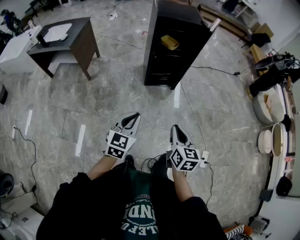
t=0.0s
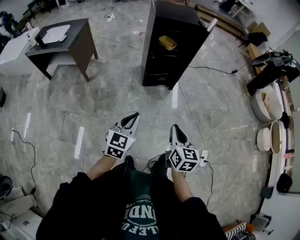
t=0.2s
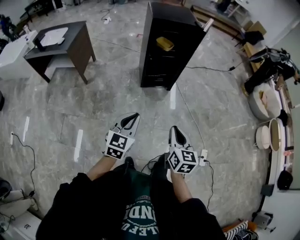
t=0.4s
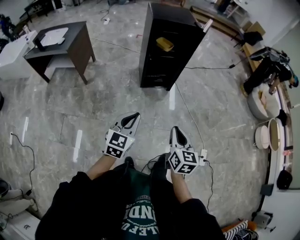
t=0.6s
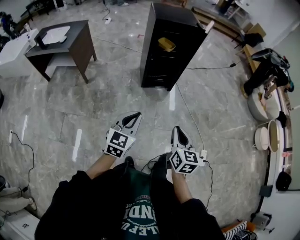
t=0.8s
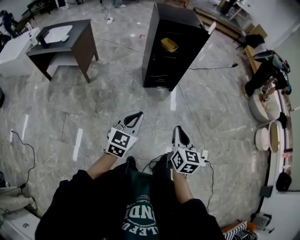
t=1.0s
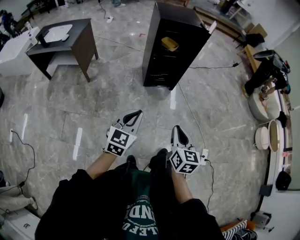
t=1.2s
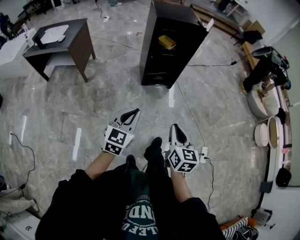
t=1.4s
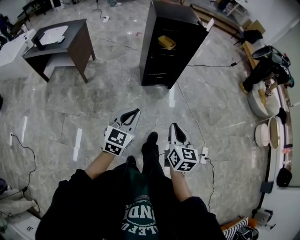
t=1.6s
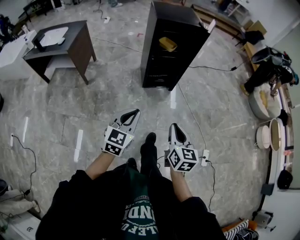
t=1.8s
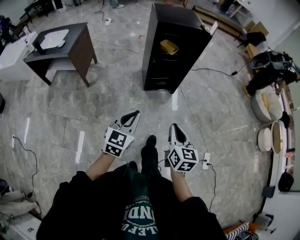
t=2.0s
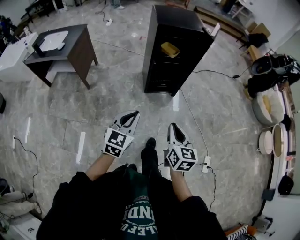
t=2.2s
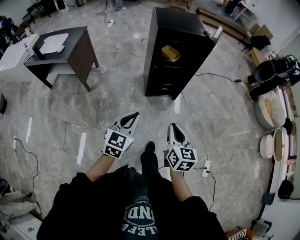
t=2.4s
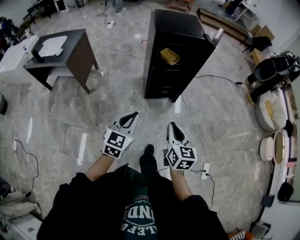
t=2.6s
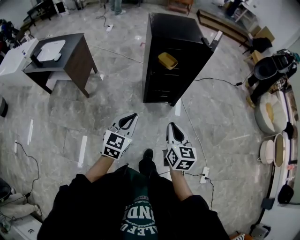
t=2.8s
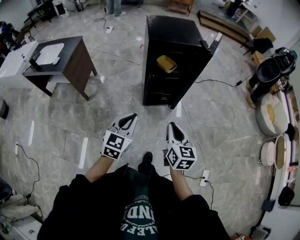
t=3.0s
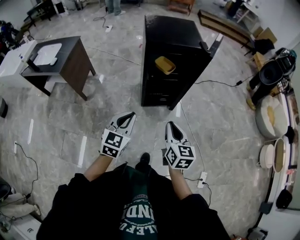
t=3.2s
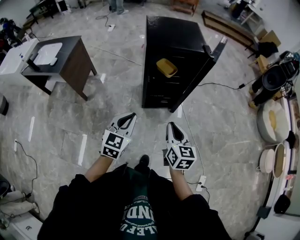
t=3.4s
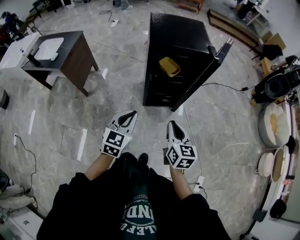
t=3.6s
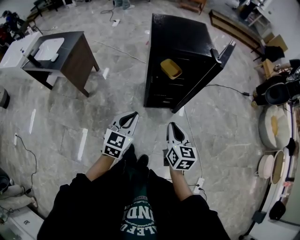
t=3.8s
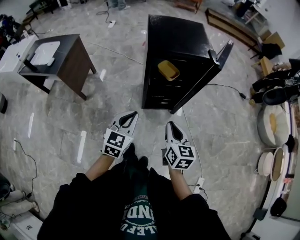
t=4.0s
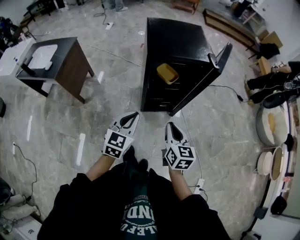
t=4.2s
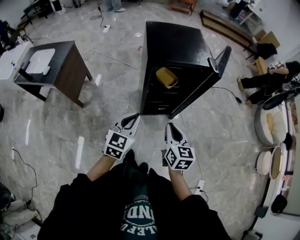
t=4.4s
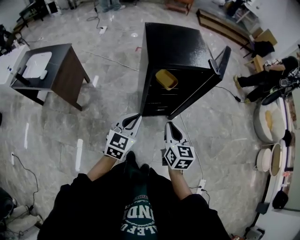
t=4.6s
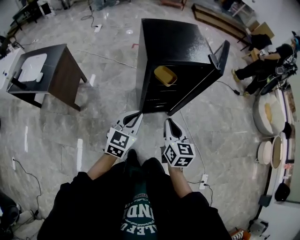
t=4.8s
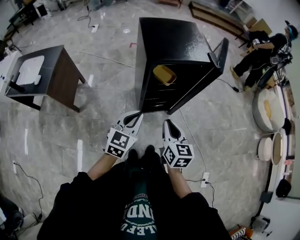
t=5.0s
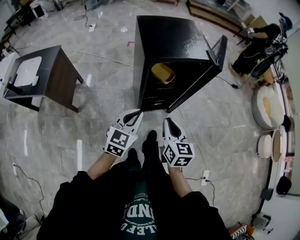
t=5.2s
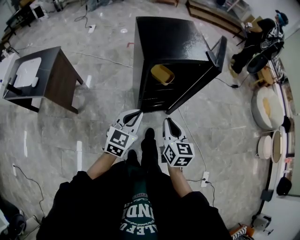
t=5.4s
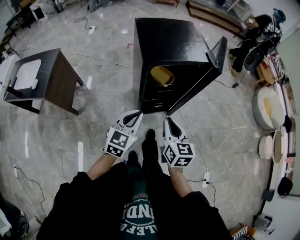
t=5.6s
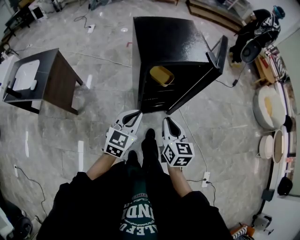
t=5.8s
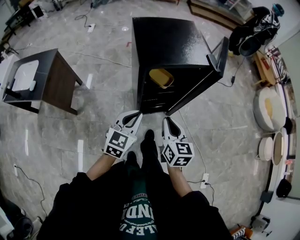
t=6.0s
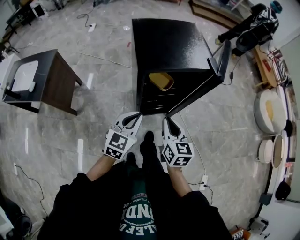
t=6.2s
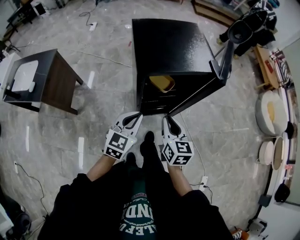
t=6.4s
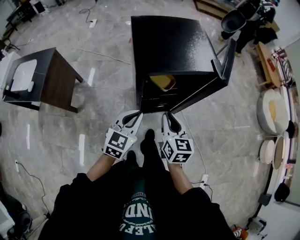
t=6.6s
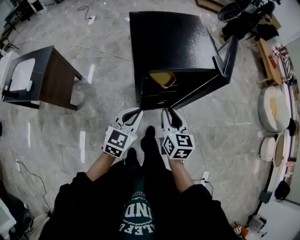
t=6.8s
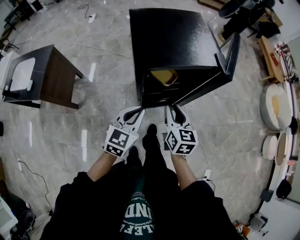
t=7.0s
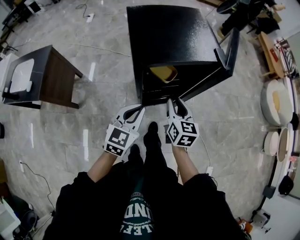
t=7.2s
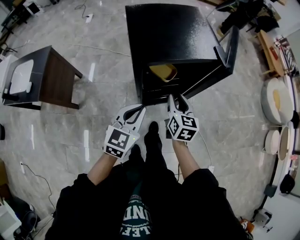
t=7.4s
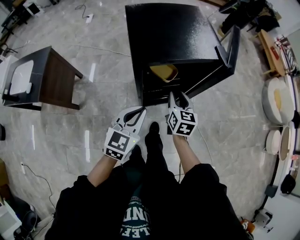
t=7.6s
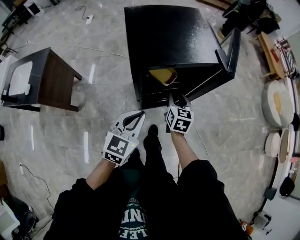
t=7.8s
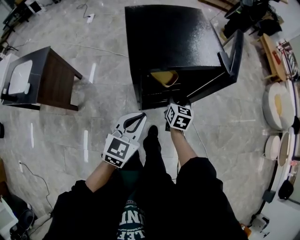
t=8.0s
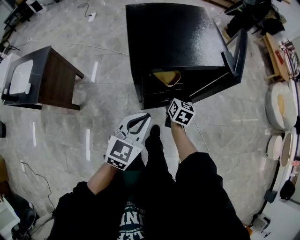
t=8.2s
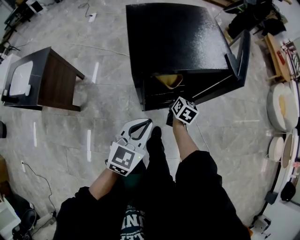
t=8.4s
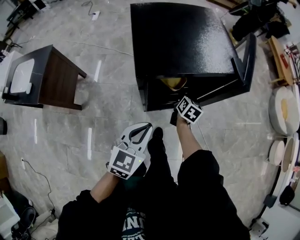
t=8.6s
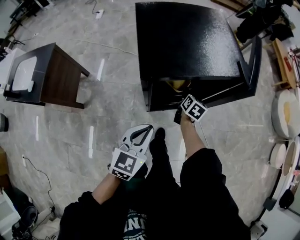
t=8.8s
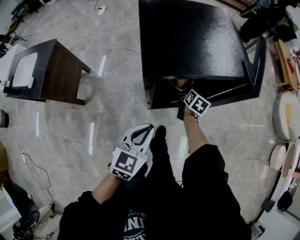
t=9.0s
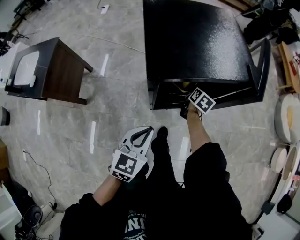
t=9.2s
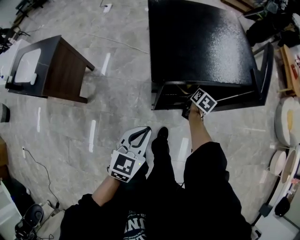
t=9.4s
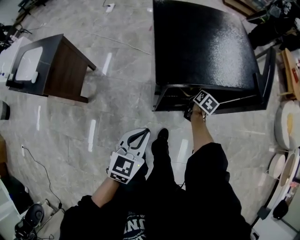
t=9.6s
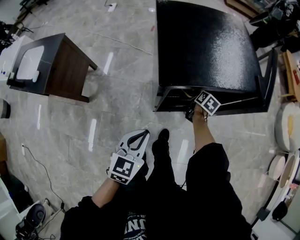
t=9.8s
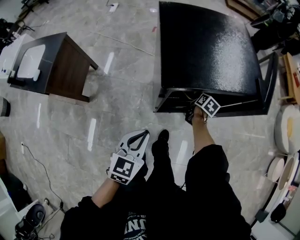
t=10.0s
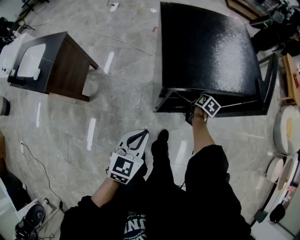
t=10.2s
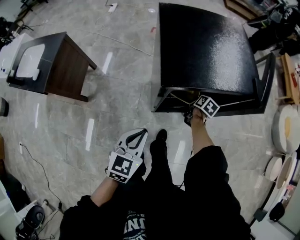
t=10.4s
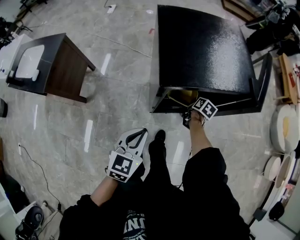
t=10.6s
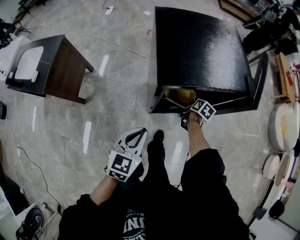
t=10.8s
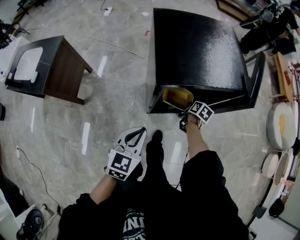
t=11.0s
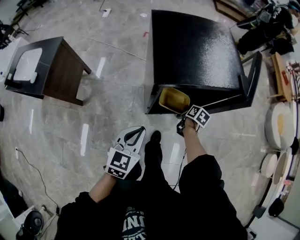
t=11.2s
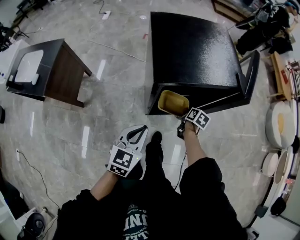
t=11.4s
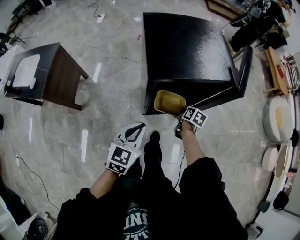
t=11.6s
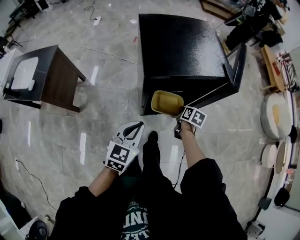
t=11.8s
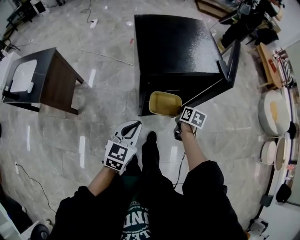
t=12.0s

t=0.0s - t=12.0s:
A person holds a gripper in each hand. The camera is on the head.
t=0.0s - t=1.6s: The right gripper changes place by some 5 cm.
t=1.6s - t=3.0s: The grippers both shift forward by some 25 cm.
t=3.0s - t=4.4s: The two grippers go about 20 cm forward.
t=4.4s - t=6.0s: Both grippers move forward, about 10 cm.
t=6.0s - t=7.6s: The right gripper shifts roughly 15 cm forward and downward.
t=7.6s - t=9.0s: The left gripper shifts roughly 5 cm downward. Meanwhile the right gripper travels forward and downward by some 20 cm, and rotates roughly 20 degrees.
t=9.0s - t=10.4s: The right gripper goes about 5 cm downward, and closes its fingers. The left gripper shifts some 5 cm to the left.
t=10.4s - t=12.0s: The left gripper changes place by some 5 cm; the right gripper is displaced backward and upward by roughly 15 cm.

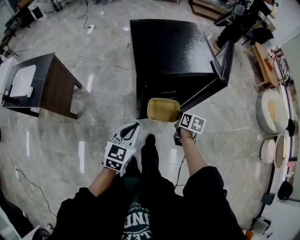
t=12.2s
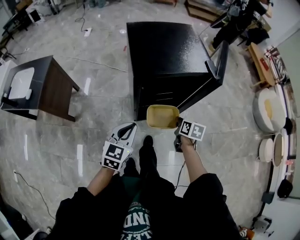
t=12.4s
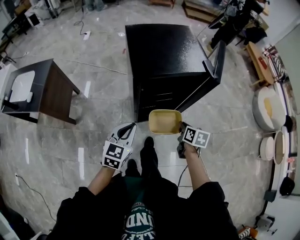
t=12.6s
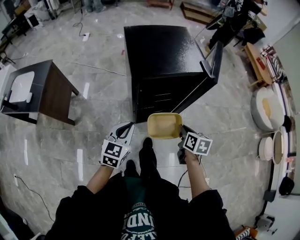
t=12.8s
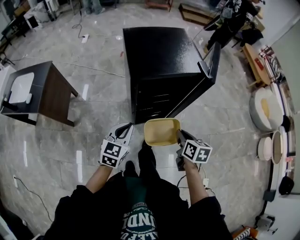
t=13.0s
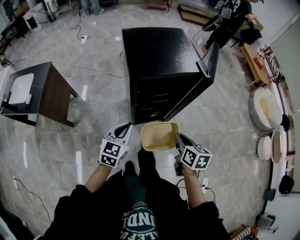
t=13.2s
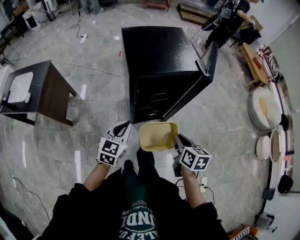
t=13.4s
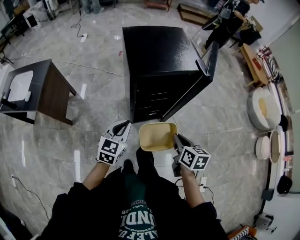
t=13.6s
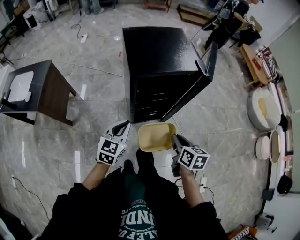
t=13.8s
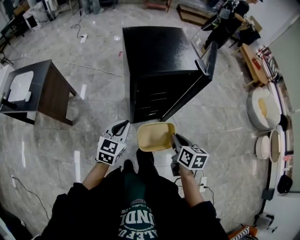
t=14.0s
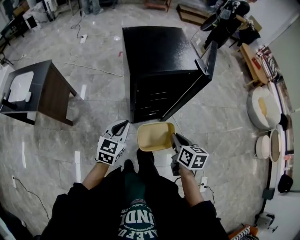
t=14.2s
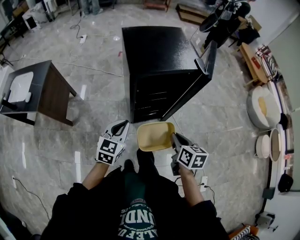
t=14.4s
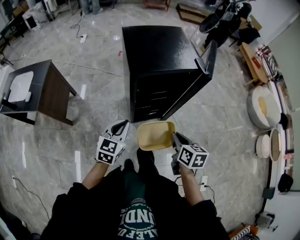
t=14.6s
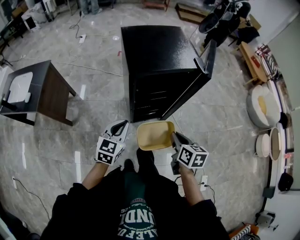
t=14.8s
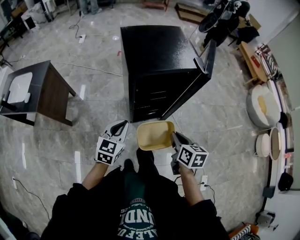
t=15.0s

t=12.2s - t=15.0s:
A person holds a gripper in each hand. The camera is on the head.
t=12.2s - t=13.6s: The right gripper heads backward and upward, covering approximately 20 cm.
t=13.6s - t=15.0s: Both grippers stay put.

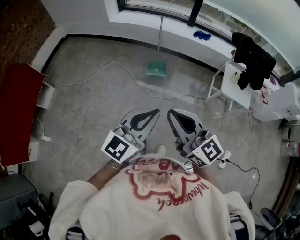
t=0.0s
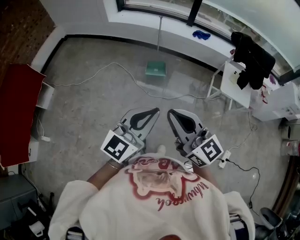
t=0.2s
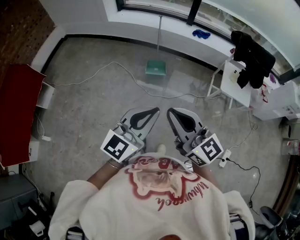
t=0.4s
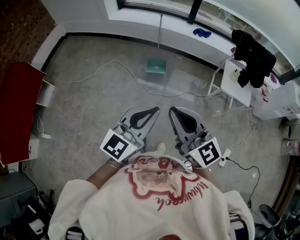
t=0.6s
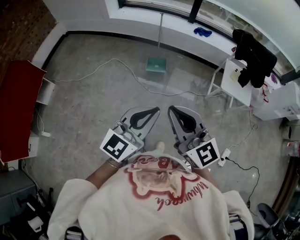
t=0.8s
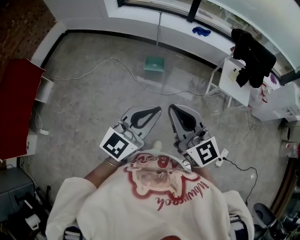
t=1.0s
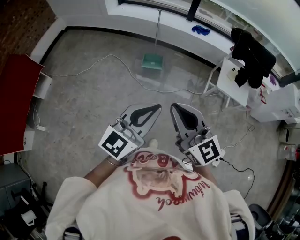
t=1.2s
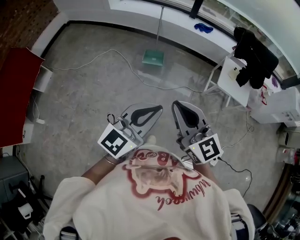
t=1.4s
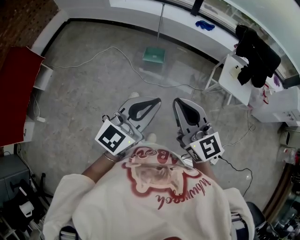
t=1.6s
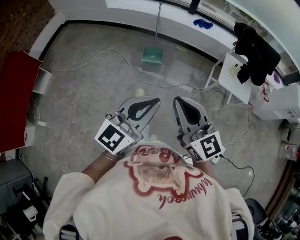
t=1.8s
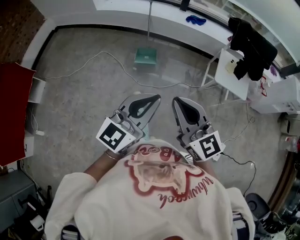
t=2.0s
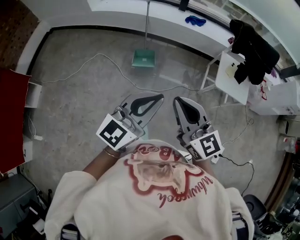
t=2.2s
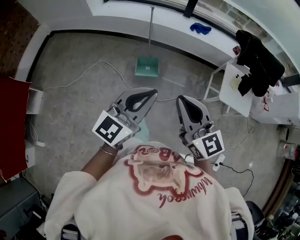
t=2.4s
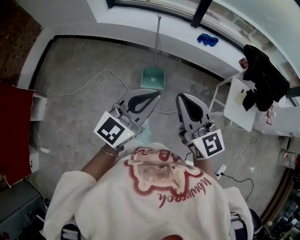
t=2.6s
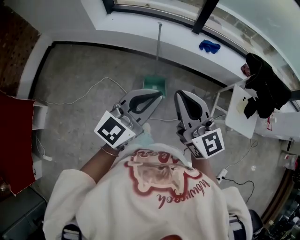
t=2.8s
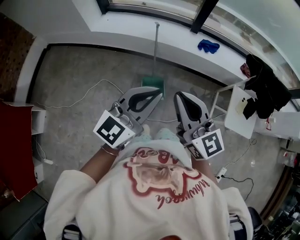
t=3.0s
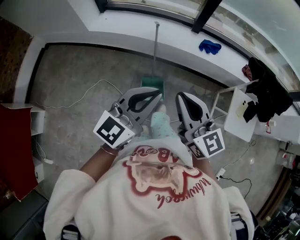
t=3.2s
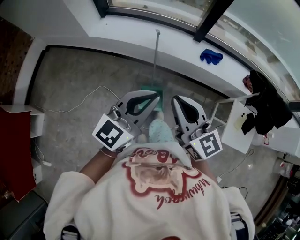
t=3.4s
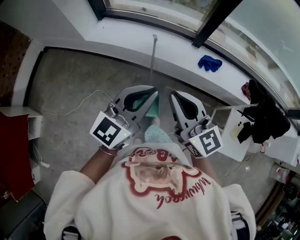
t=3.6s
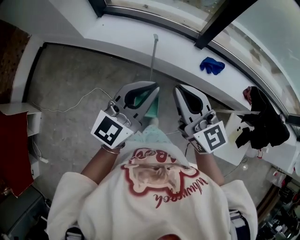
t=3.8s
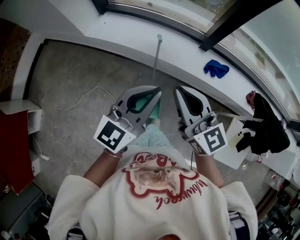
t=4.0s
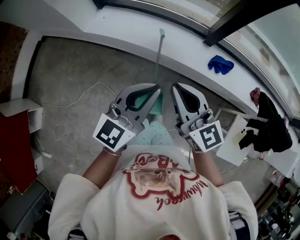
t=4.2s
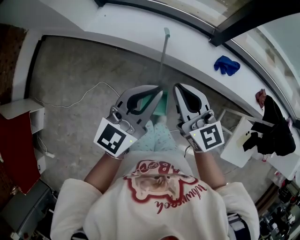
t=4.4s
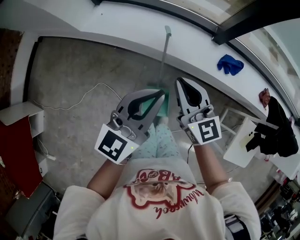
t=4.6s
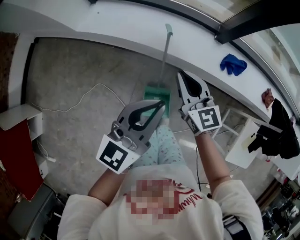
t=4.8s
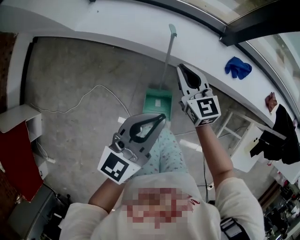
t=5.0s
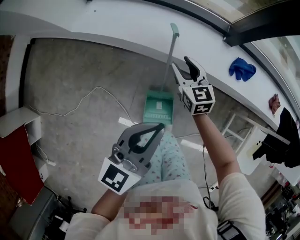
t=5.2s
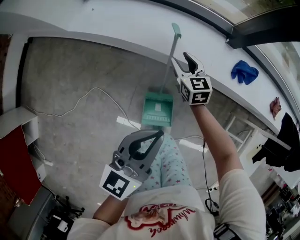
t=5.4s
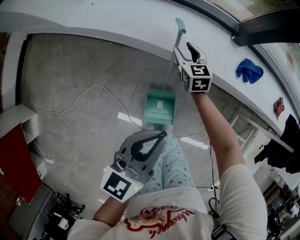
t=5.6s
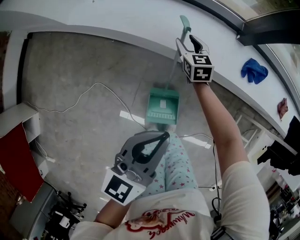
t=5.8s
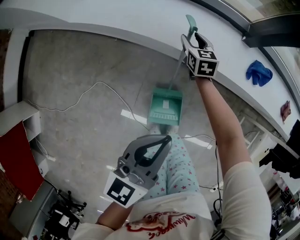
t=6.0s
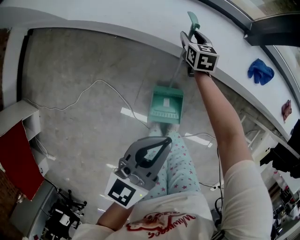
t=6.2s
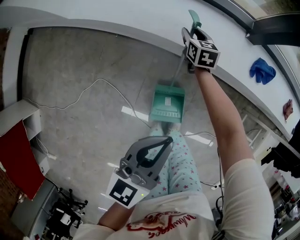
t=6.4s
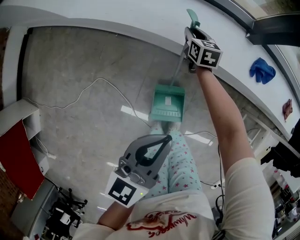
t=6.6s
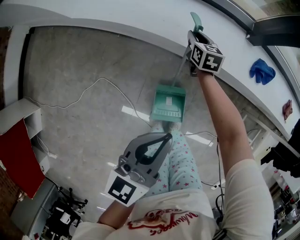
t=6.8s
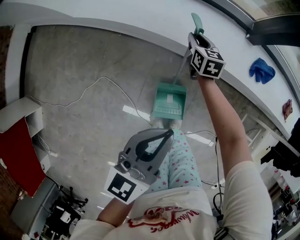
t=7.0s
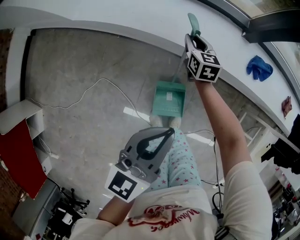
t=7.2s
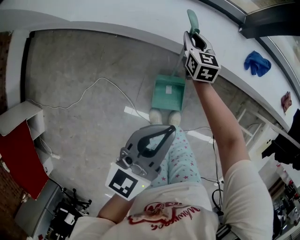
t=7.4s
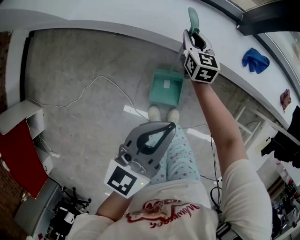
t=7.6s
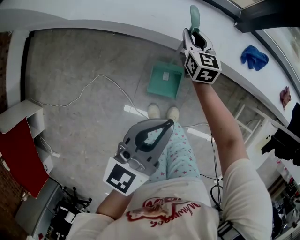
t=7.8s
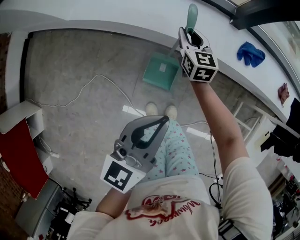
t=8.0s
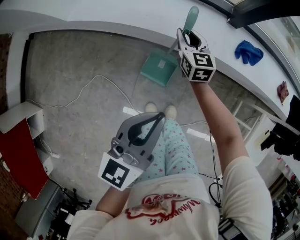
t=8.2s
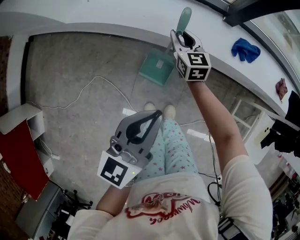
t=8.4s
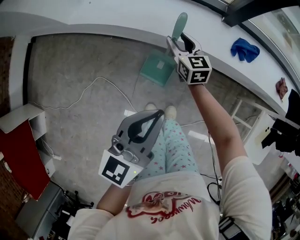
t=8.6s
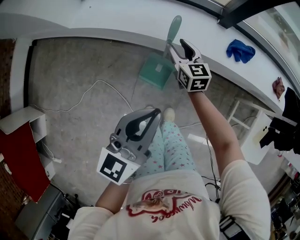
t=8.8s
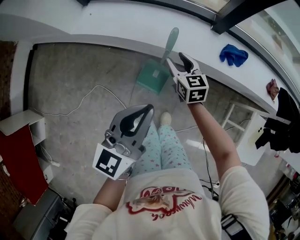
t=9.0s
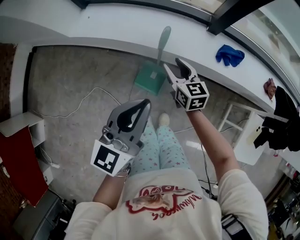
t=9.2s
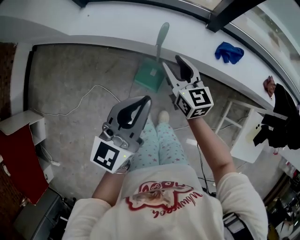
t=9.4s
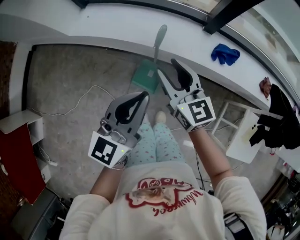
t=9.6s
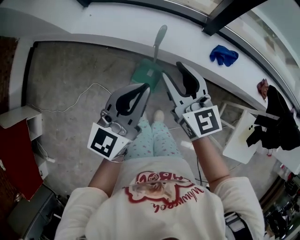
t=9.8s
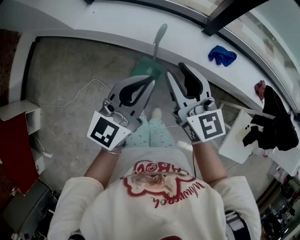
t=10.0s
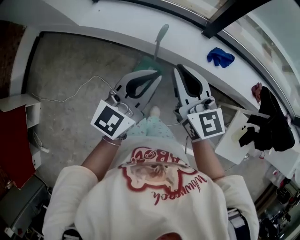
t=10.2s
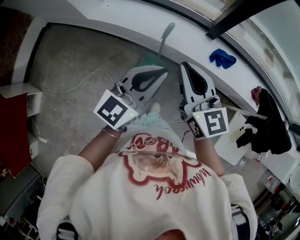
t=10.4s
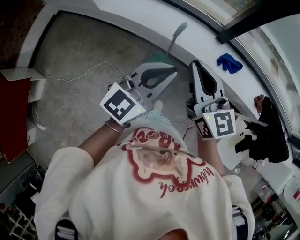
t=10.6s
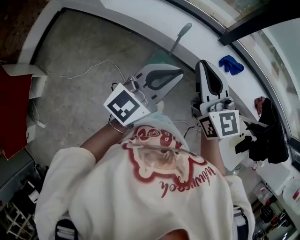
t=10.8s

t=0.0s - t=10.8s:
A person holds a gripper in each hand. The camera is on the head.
t=0.0s - t=1.6s: The two grippers go some 10 cm to the right.
t=1.6s - t=3.0s: The two grippers travel together, forward, some 50 cm.
t=3.0s - t=4.6s: The left gripper goes roughly 35 cm forward; the right gripper travels forward and downward by approximately 40 cm.
t=4.6s - t=6.2s: The right gripper moves downward and forward, approximately 50 cm, tilts its fingers about 30 degrees downward, and opens. Meanwhile the left gripper shifts approximately 20 cm downward.
t=6.2s - t=7.8s: The right gripper goes some 10 cm upward and backward, and closes. Meanwhile the left gripper moves roughly 5 cm.
t=7.8s - t=9.2s: The left gripper heads upward, covering roughly 10 cm. The right gripper shifts about 15 cm backward and upward, and opens up.
t=9.2s - t=10.8s: The left gripper travels upward, backward and to the right by some 15 cm. Meanwhile the right gripper travels upward and backward by some 35 cm, swivels roughly 30 degrees, and closes up.
